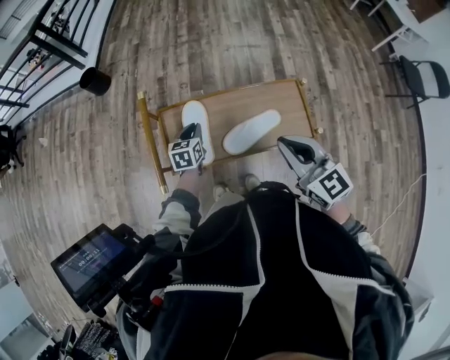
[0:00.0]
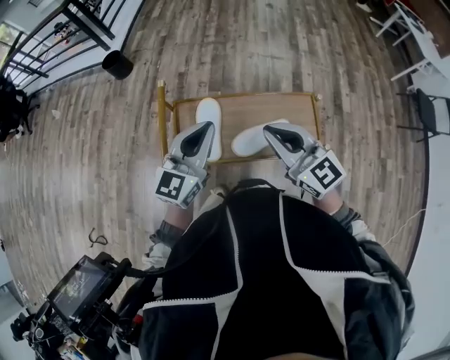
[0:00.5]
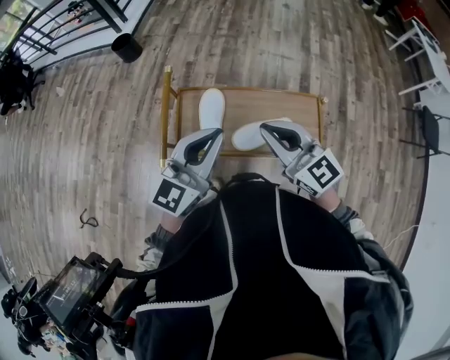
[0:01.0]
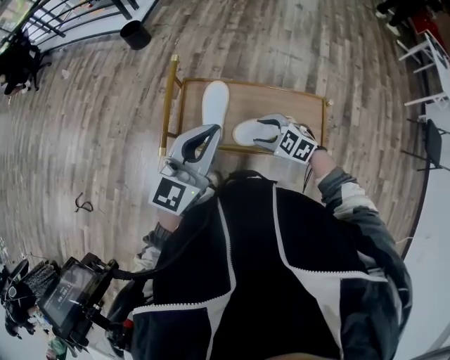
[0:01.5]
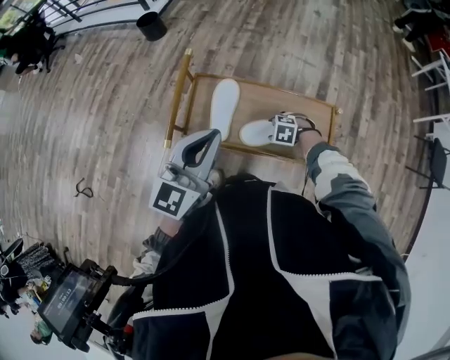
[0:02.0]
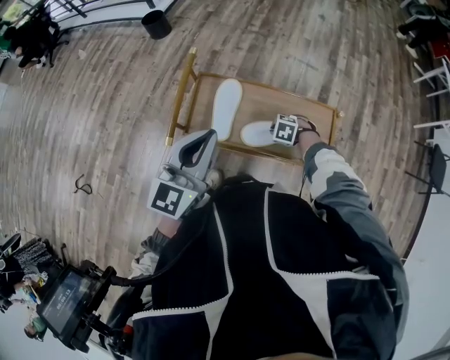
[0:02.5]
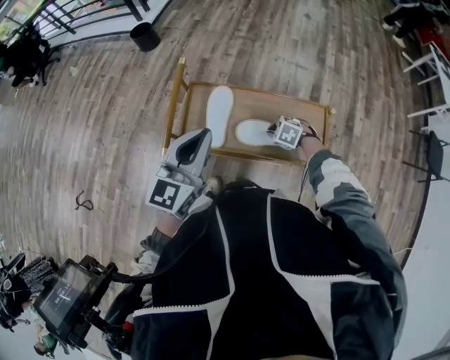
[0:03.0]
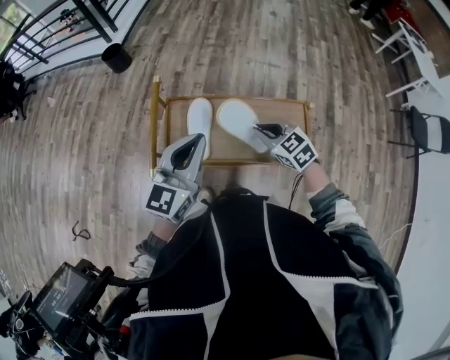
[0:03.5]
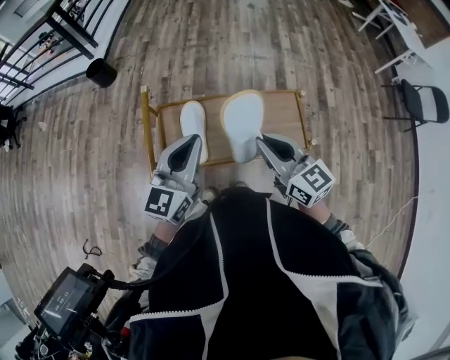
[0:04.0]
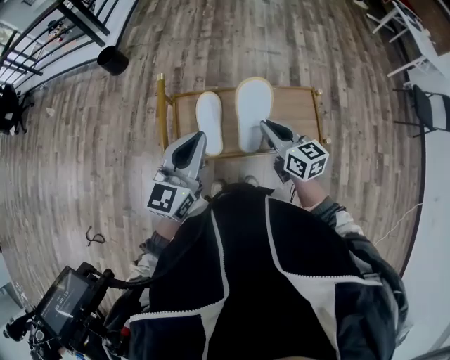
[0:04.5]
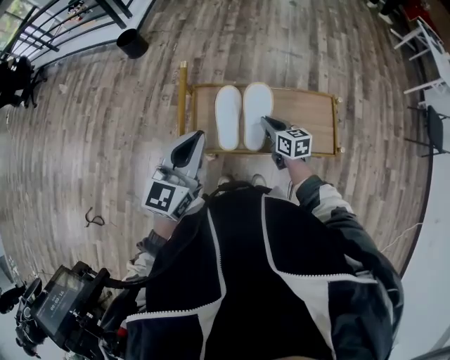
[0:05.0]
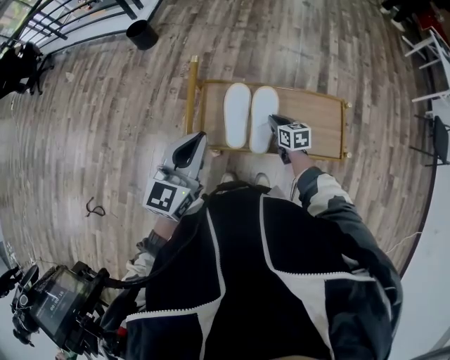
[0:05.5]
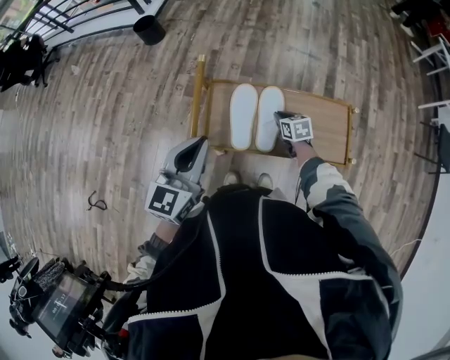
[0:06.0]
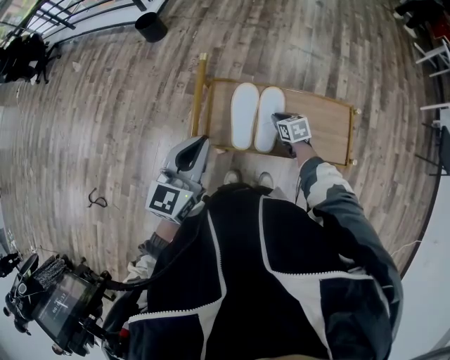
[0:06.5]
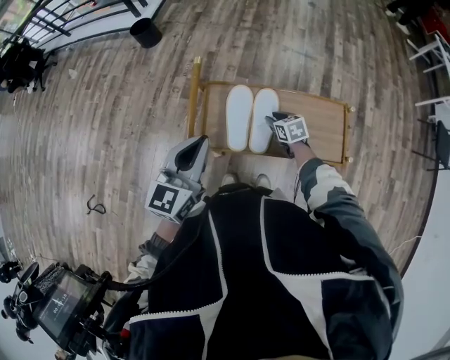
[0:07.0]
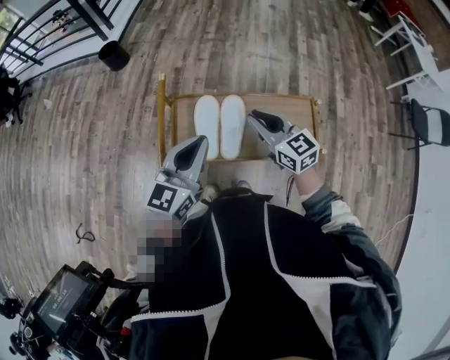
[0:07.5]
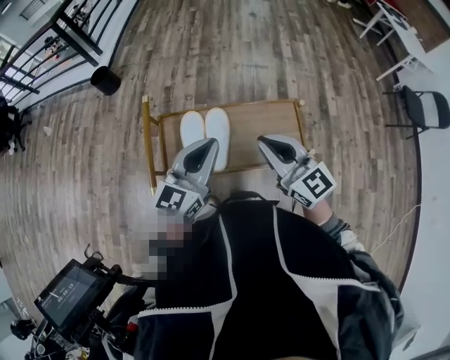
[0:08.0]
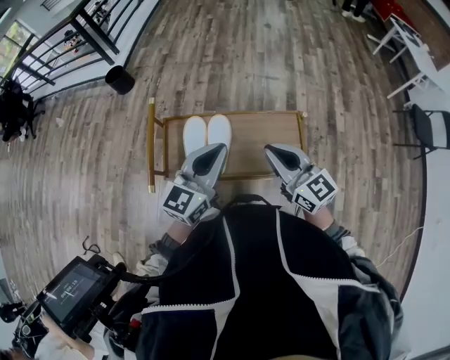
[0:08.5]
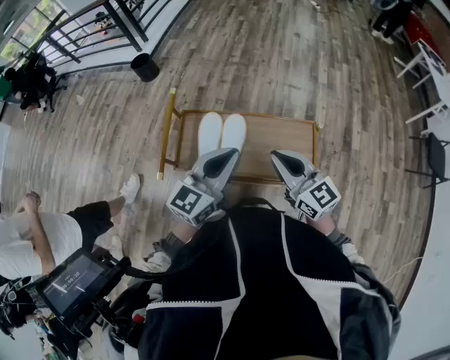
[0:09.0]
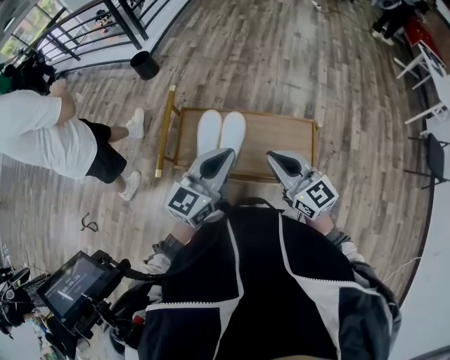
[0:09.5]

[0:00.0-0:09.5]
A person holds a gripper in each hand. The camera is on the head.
0:00.0 to 0:02.0: The left gripper is displaced upward by approximately 30 cm, and tilts its fingers some 40 degrees upward. Meanwhile the right gripper heads downward, covering roughly 30 cm, tips its fingers downward by roughly 60 degrees, and opens up.
0:02.0 to 0:04.0: The right gripper travels upward by approximately 30 cm, tilts its fingers some 70 degrees upward, and closes. The left gripper changes place by some 5 cm.
0:04.0 to 0:05.5: The left gripper is displaced to the left by approximately 10 cm, while the right gripper moves downward and forward, some 30 cm, and tilts its fingers roughly 30 degrees downward.
0:05.5 to 0:07.5: The right gripper travels upward by some 25 cm, and rotates approximately 30 degrees.
0:07.5 to 0:09.5: The right gripper goes some 15 cm to the right and backward. Meanwhile the left gripper shifts about 15 cm to the right.

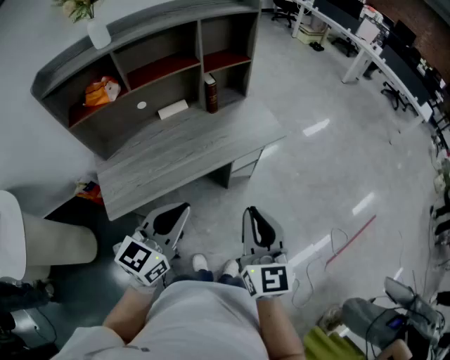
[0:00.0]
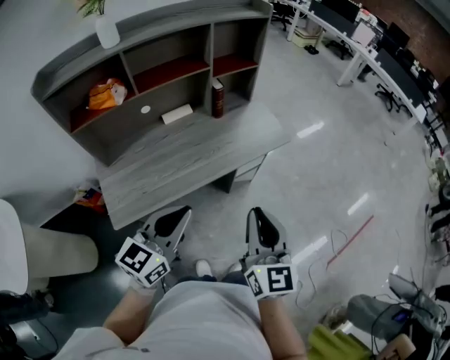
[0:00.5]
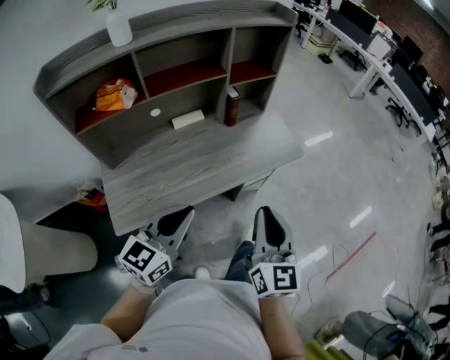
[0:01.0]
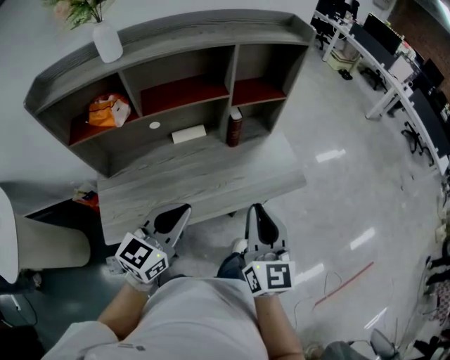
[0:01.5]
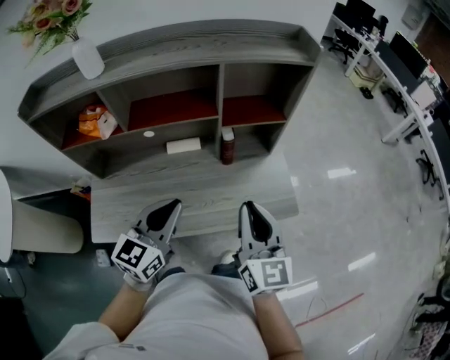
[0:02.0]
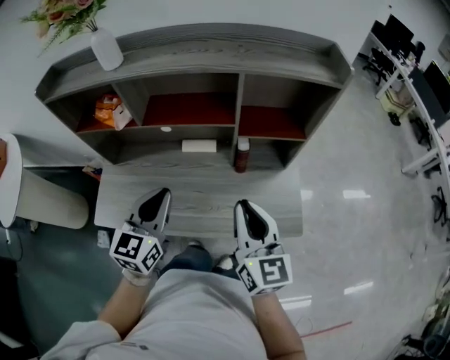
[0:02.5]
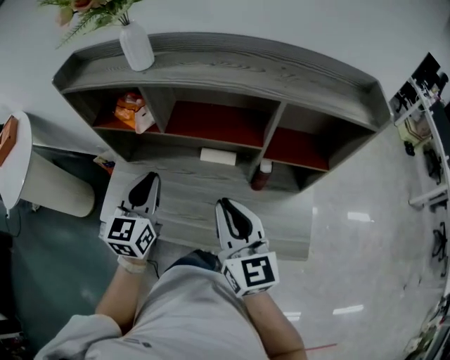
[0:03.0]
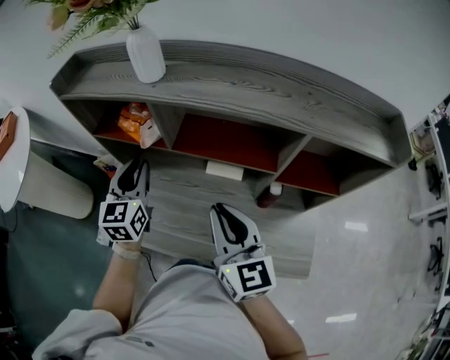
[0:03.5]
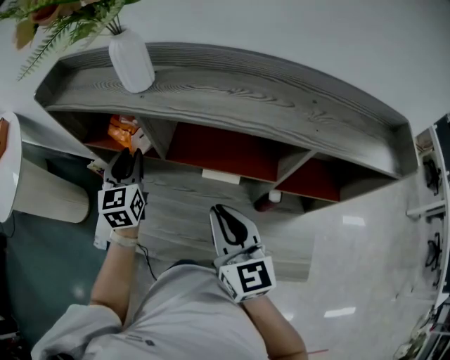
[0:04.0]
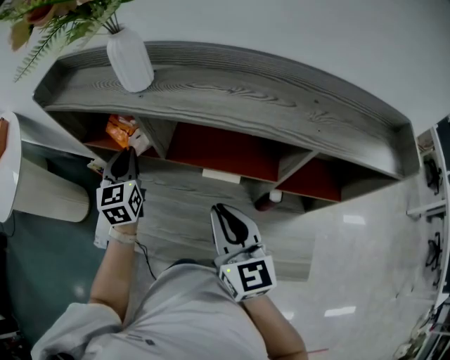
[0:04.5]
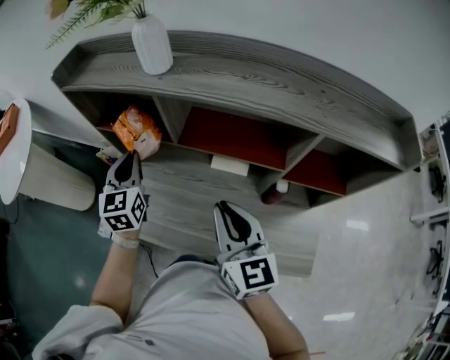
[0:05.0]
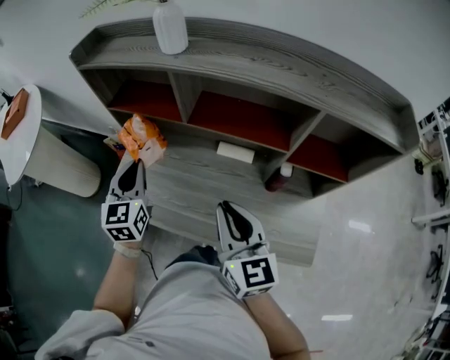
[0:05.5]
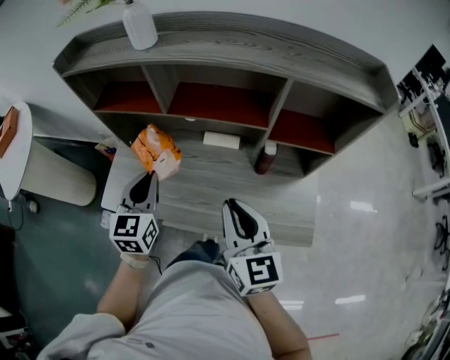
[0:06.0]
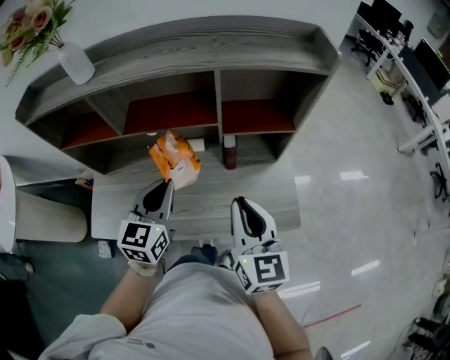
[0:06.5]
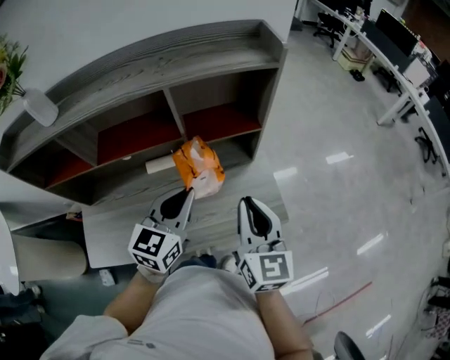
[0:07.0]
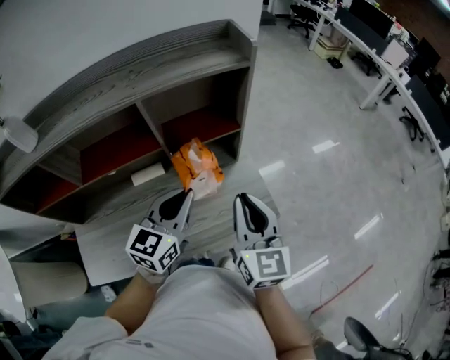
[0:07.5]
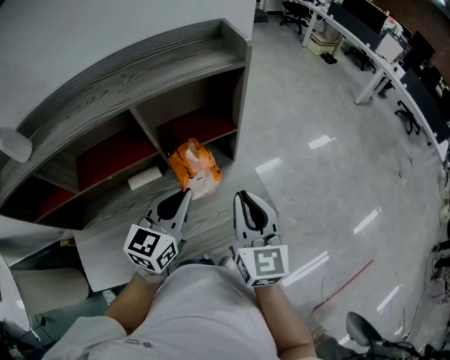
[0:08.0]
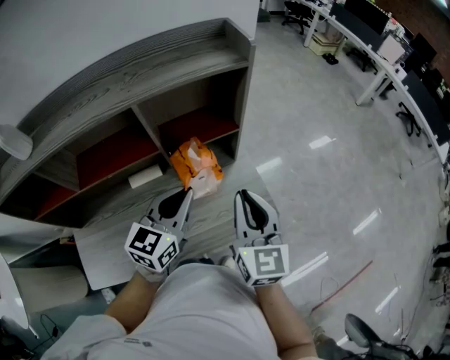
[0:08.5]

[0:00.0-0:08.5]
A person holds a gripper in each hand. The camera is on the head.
0:00.0 to 0:02.0: Both grippers move forward, some 30 cm. The right gripper rotates roughly 20 degrees; the left gripper rotates some 20 degrees.
0:02.0 to 0:04.0: The left gripper changes place by some 35 cm, changes its angle by roughly 50 degrees, and opens. Meanwhile the right gripper ends up some 25 cm from where it was, and turns by about 30 degrees.
0:04.0 to 0:06.5: The left gripper moves about 30 cm, changes its angle by some 30 degrees, and closes its fingers. The right gripper ends up approximately 20 cm from where it was, and turns by roughly 20 degrees.
0:06.5 to 0:08.5: The left gripper moves approximately 15 cm, and turns by about 30 degrees. The right gripper changes place by about 10 cm, and rotates about 20 degrees.

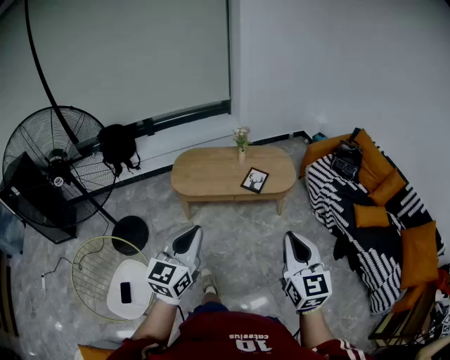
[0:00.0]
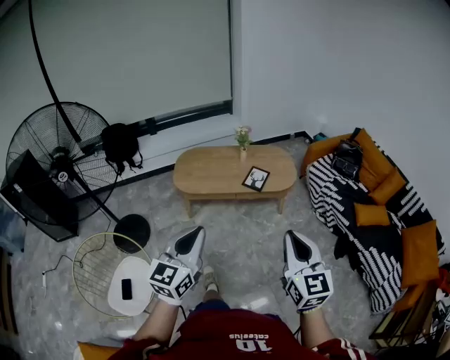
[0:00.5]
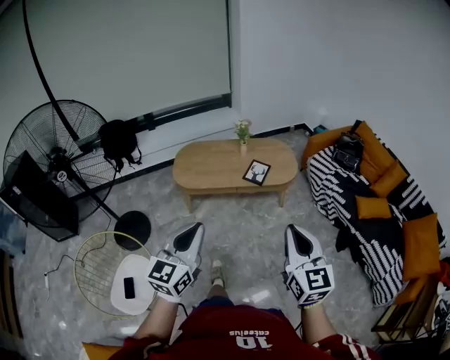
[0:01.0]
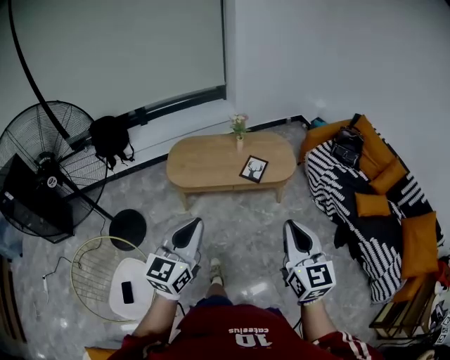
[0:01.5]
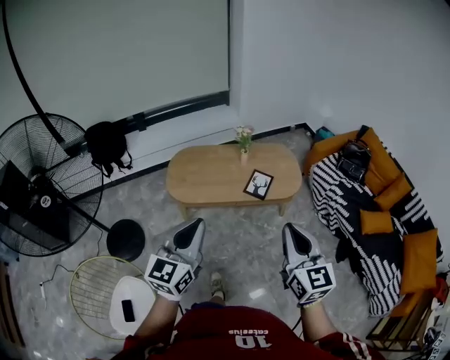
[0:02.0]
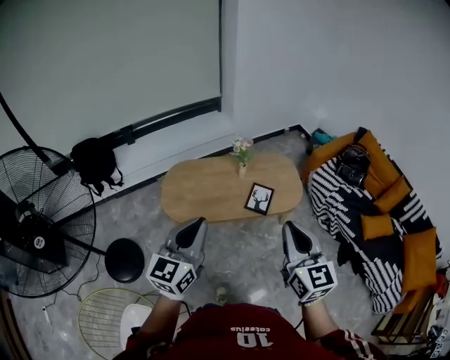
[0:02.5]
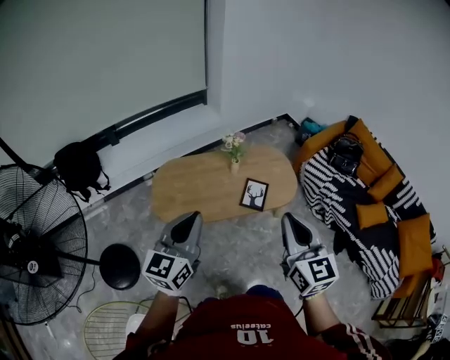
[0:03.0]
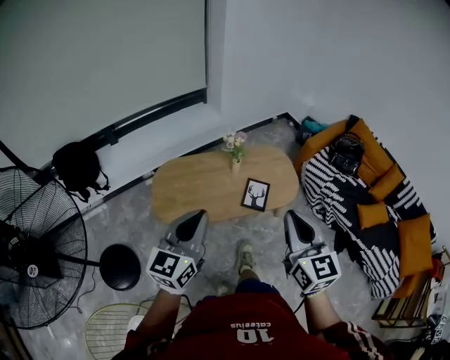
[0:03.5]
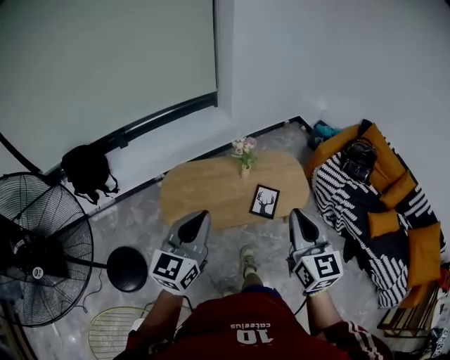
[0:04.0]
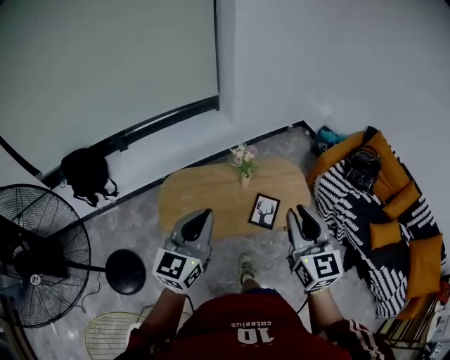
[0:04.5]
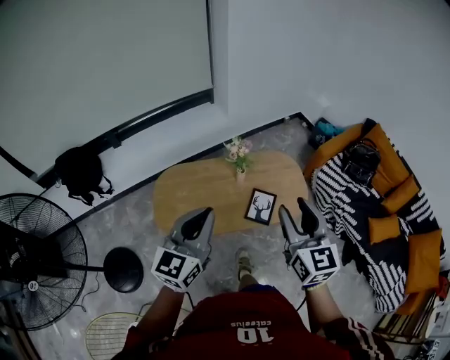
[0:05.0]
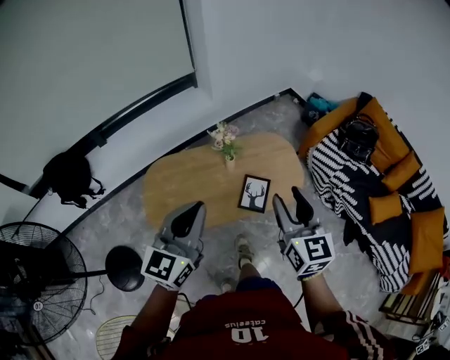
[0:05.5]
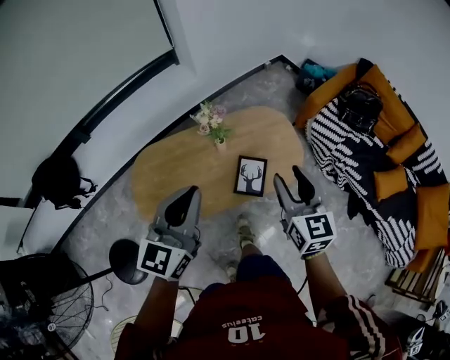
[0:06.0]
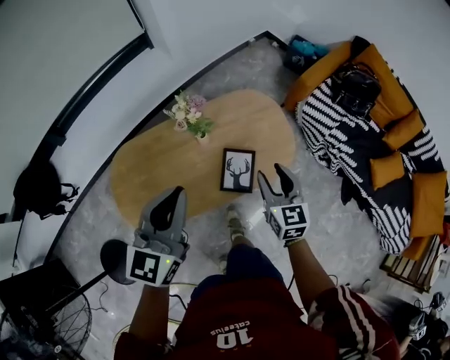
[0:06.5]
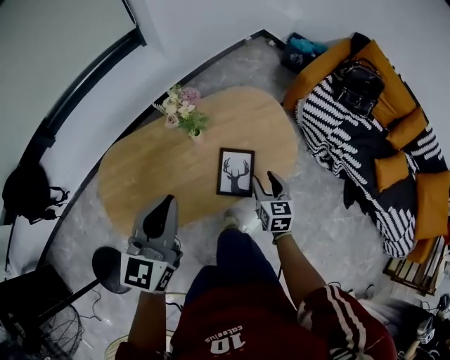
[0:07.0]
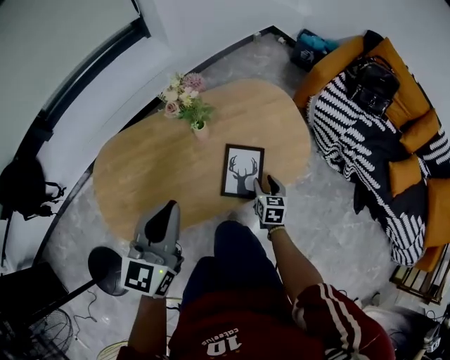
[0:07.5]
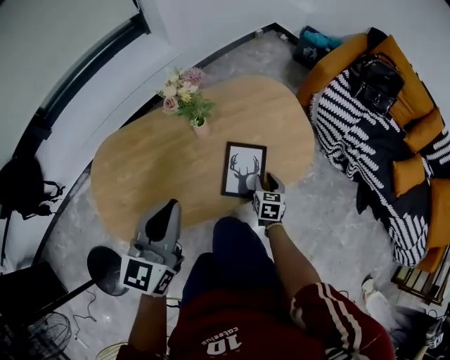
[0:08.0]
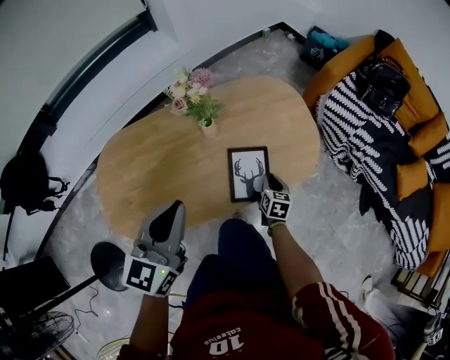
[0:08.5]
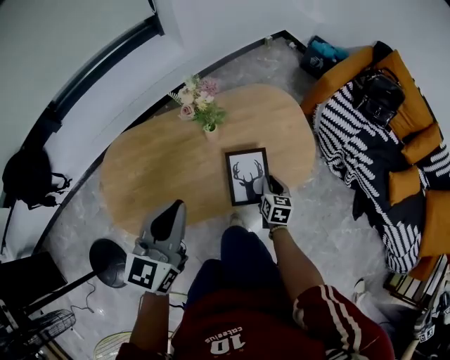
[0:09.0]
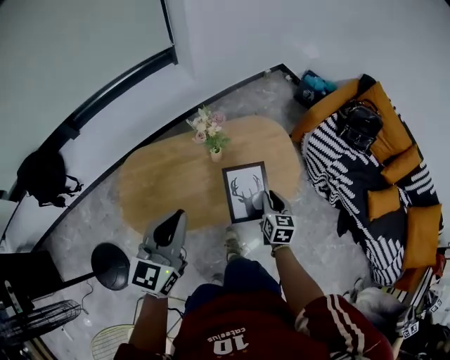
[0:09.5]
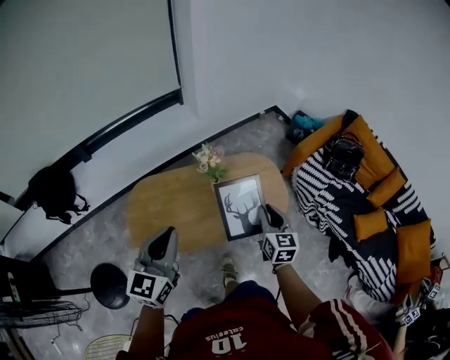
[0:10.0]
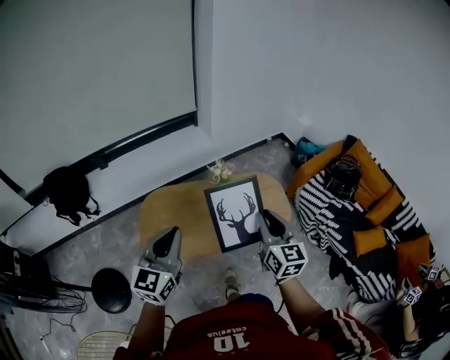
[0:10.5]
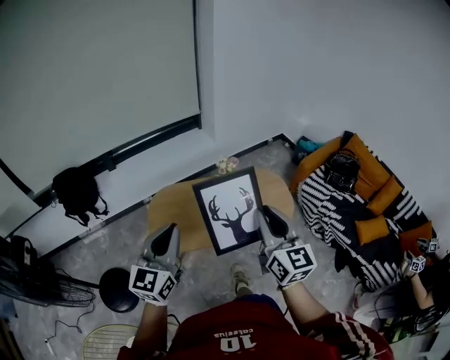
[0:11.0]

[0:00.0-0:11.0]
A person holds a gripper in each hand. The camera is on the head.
0:00.0 to 0:02.0: The grippers both shift forward by approximately 15 cm.
0:02.0 to 0:03.5: Both grippers travel together forward and to the left, roughly 20 cm.
0:03.5 to 0:05.5: Both grippers move forward, approximately 15 cm. The right gripper opens its fingers.
0:05.5 to 0:07.5: The left gripper moves downward, approximately 30 cm. Meanwhile the right gripper shifts roughly 60 cm downward, and tilts its fingers some 30 degrees downward.
0:07.5 to 0:09.0: The right gripper closes up.
0:09.0 to 0:11.0: The left gripper travels upward and backward by roughly 40 cm, and turns by some 20 degrees; the right gripper travels upward and backward by some 70 cm, and tilts its fingers approximately 40 degrees upward.
